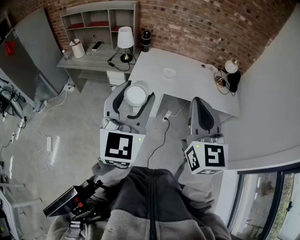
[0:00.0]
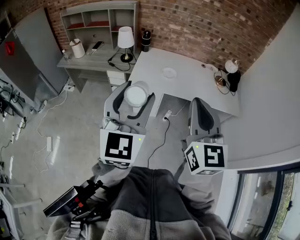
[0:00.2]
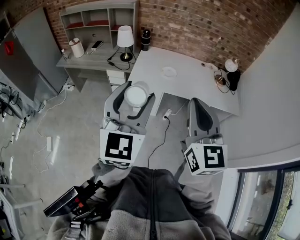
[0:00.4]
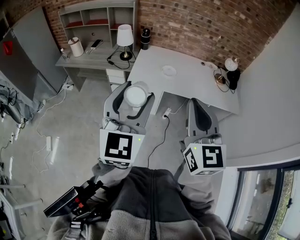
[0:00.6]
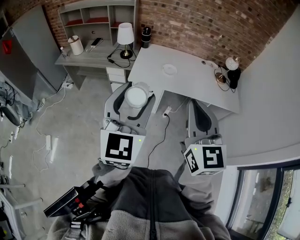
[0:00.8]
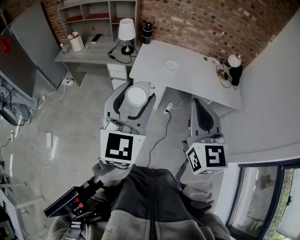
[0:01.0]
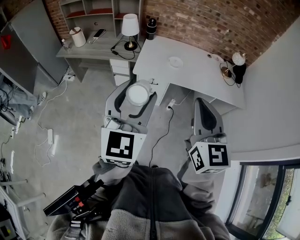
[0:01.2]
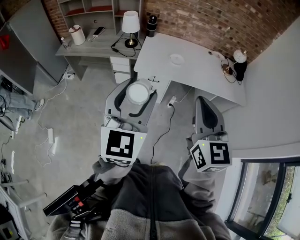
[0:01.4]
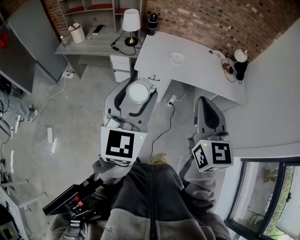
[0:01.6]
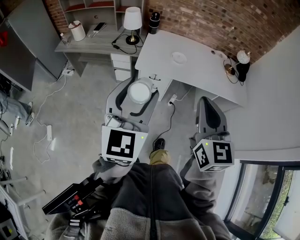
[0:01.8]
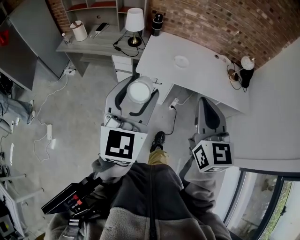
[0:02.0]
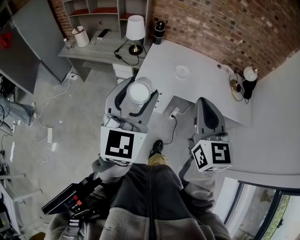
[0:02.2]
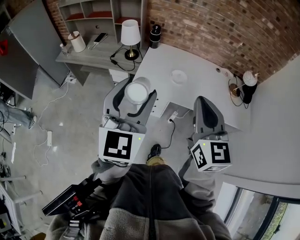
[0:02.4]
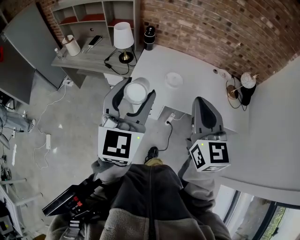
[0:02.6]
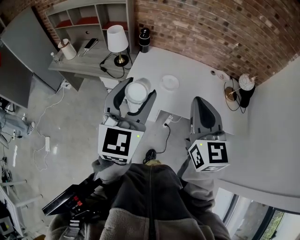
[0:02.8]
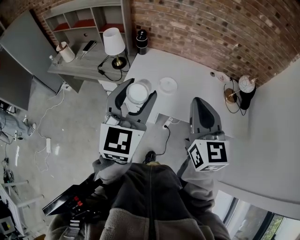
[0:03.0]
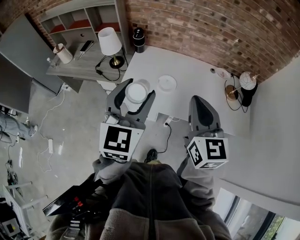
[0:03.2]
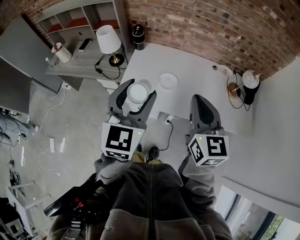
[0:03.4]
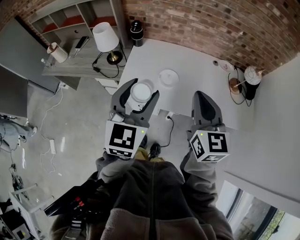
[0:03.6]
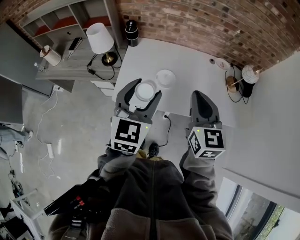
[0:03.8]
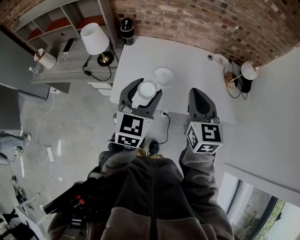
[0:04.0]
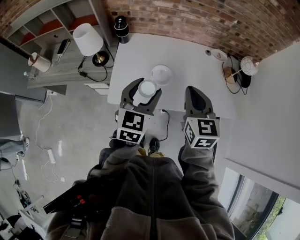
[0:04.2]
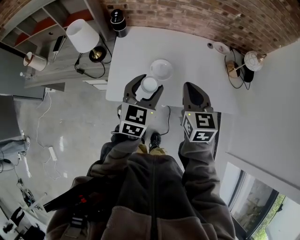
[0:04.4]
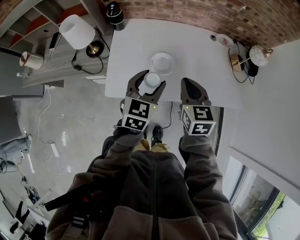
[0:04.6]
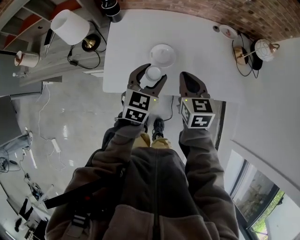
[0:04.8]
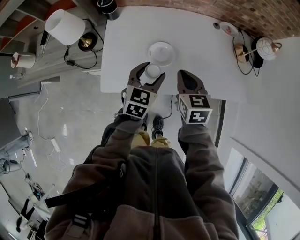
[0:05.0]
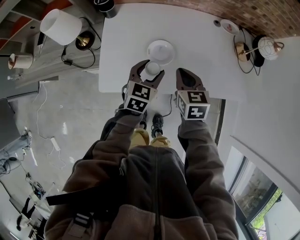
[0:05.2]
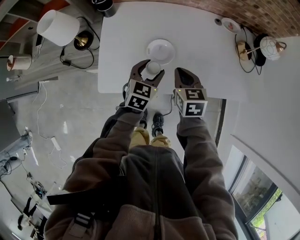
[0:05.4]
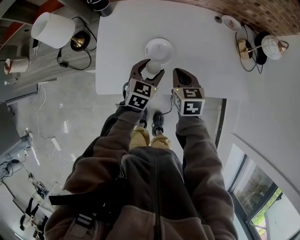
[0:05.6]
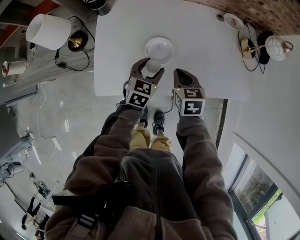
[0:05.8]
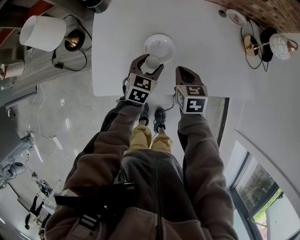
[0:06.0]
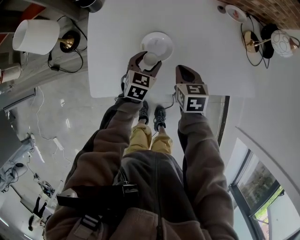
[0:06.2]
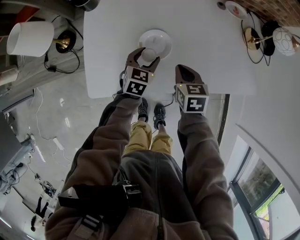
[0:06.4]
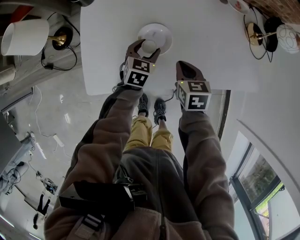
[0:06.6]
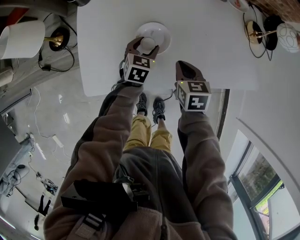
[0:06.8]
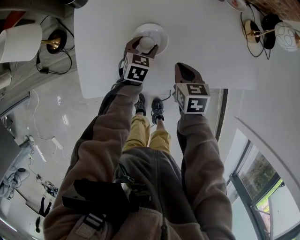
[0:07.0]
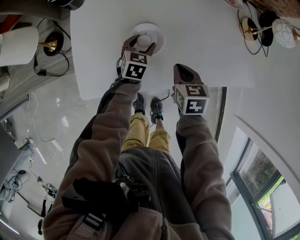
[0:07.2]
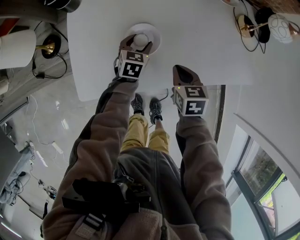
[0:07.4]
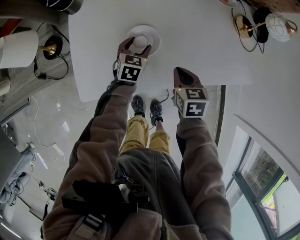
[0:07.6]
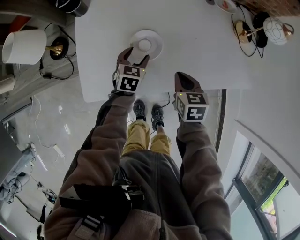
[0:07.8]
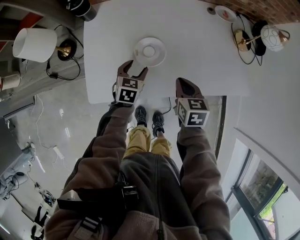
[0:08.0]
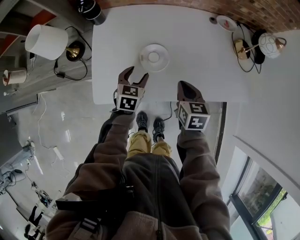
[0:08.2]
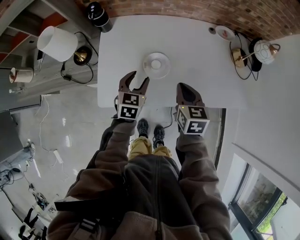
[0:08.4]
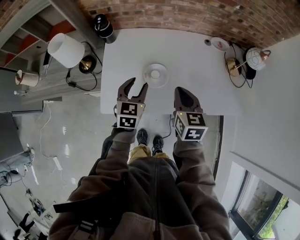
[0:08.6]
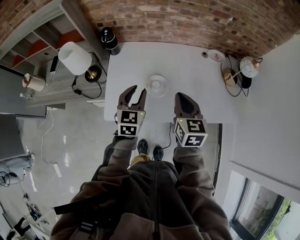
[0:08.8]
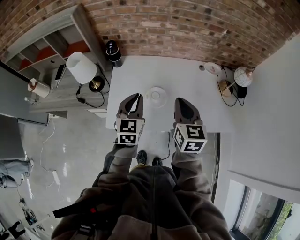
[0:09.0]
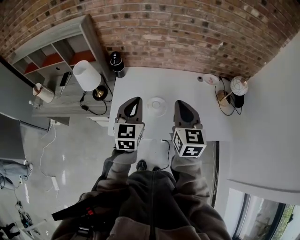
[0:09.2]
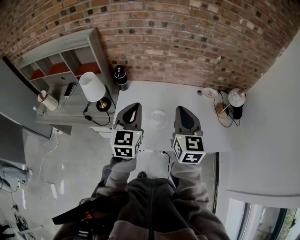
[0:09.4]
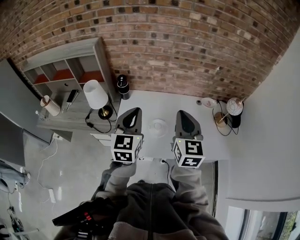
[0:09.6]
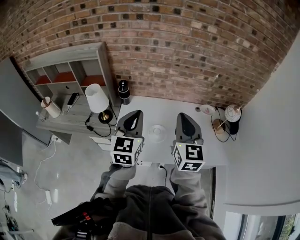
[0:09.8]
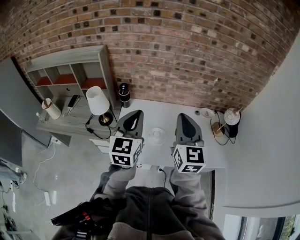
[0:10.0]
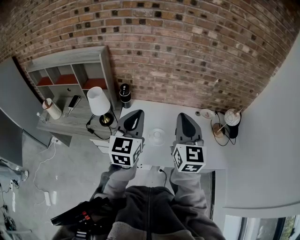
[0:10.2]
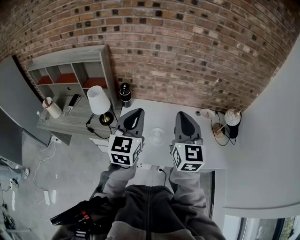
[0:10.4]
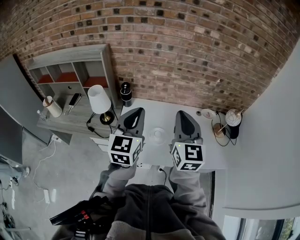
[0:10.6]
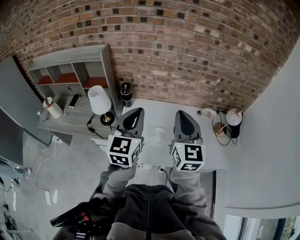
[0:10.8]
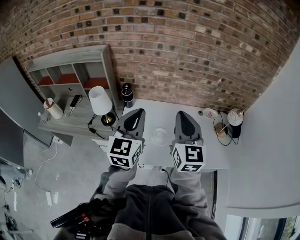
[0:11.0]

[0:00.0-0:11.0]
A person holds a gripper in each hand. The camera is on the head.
0:00.0 to 0:01.6: The right gripper is displaced downward by some 5 cm, while the left gripper goes some 10 cm downward and to the left.
0:01.6 to 0:03.2: The grippers both shift forward and to the right by approximately 35 cm.
0:03.2 to 0:04.8: The grippers both shift downward and forward by approximately 30 cm. The left gripper changes its angle by about 30 degrees; the right gripper rotates approximately 30 degrees.
0:04.8 to 0:06.2: The left gripper goes some 20 cm downward and forward. The right gripper moves downward, approximately 15 cm.
0:06.2 to 0:07.8: The right gripper moves about 5 cm.
0:07.8 to 0:09.4: The grippers both shift upward by approximately 40 cm. The left gripper angles its fingers upward, by roughly 40 degrees, and closes its fingers, while the right gripper angles its fingers upward, by about 40 degrees.
0:09.4 to 0:11.0: Both grippers move upward, approximately 10 cm.
